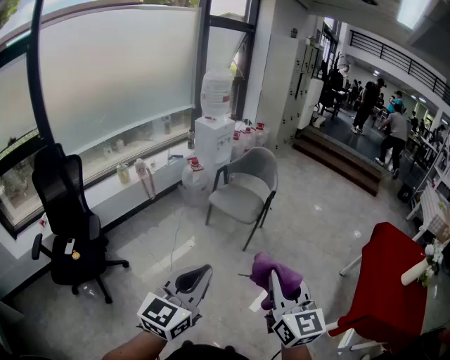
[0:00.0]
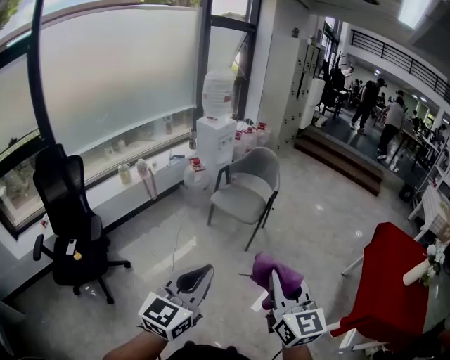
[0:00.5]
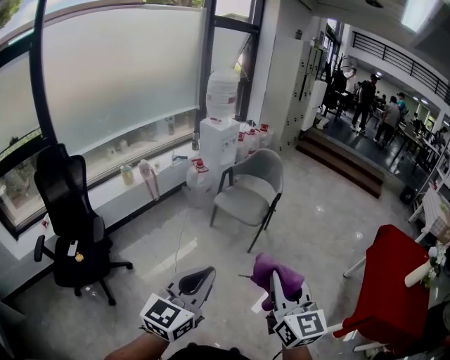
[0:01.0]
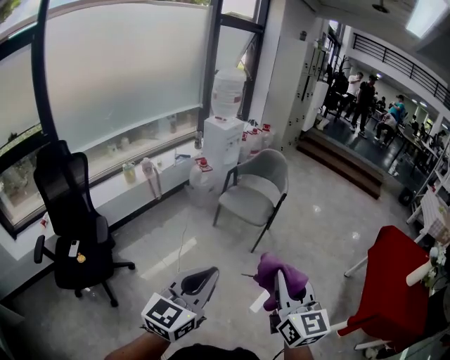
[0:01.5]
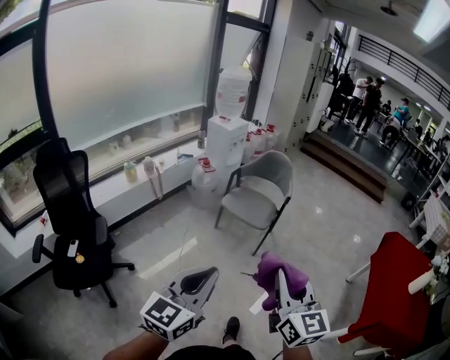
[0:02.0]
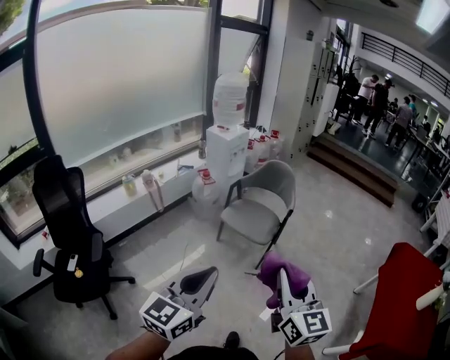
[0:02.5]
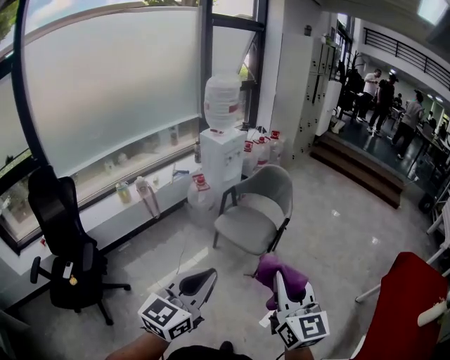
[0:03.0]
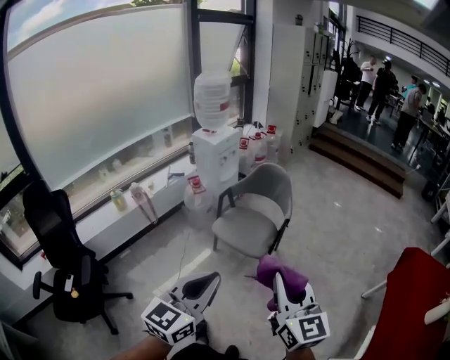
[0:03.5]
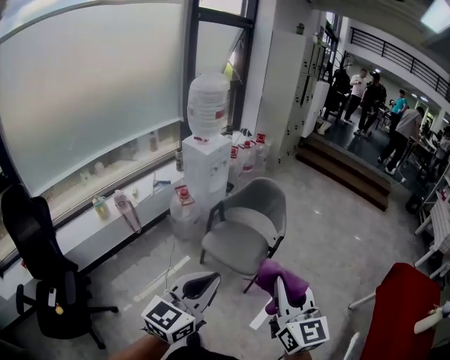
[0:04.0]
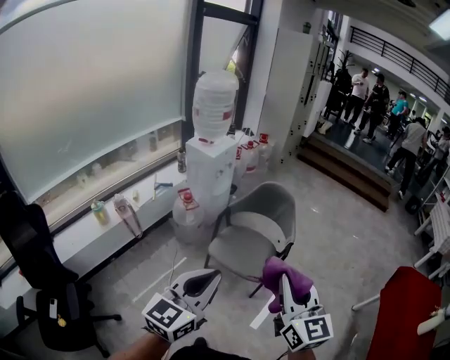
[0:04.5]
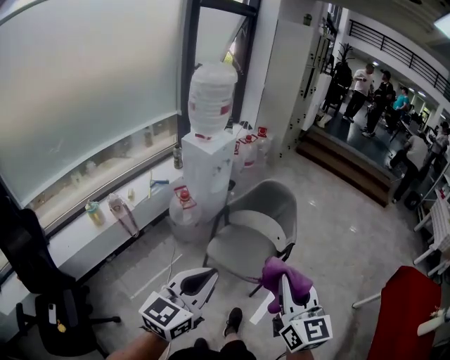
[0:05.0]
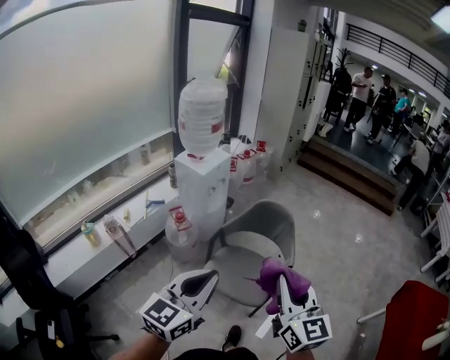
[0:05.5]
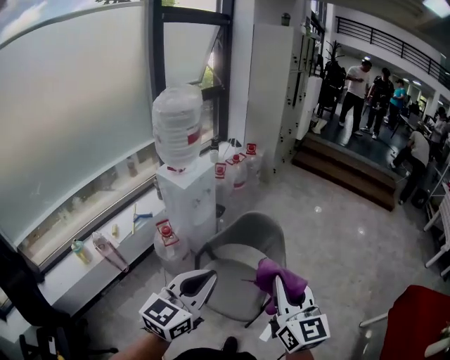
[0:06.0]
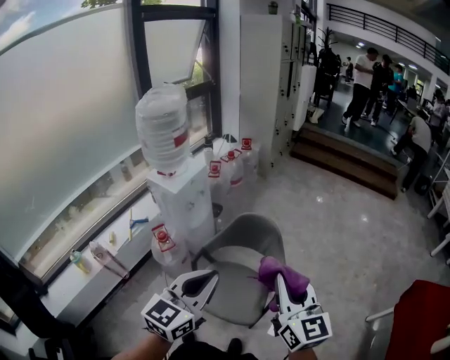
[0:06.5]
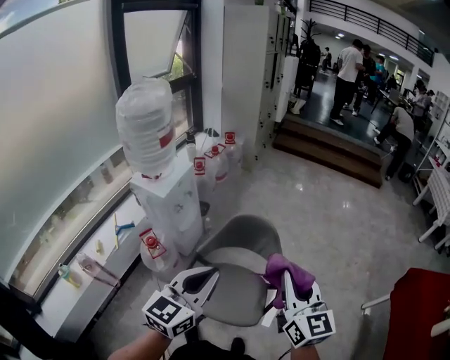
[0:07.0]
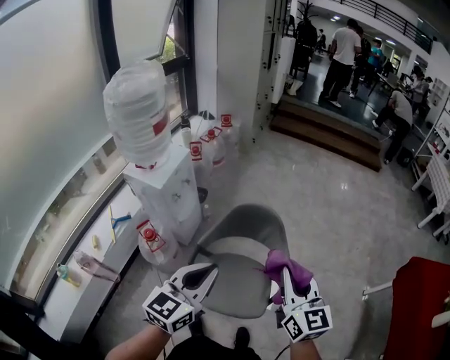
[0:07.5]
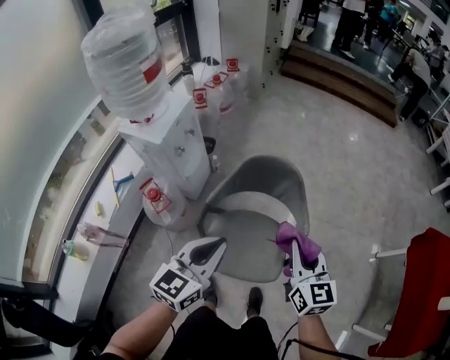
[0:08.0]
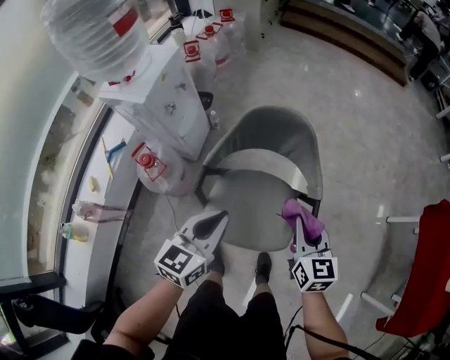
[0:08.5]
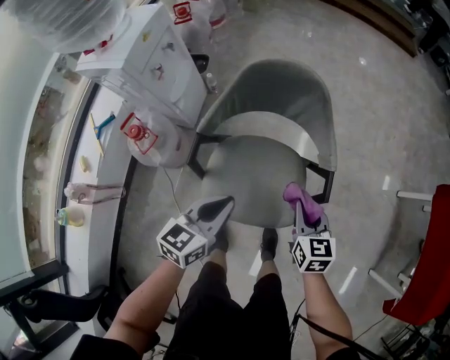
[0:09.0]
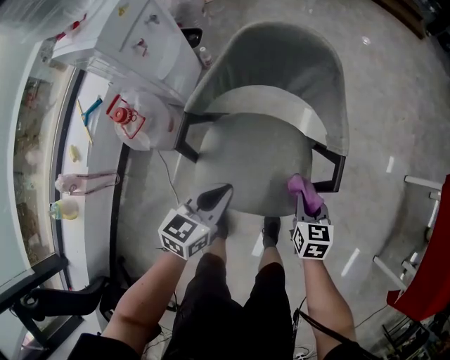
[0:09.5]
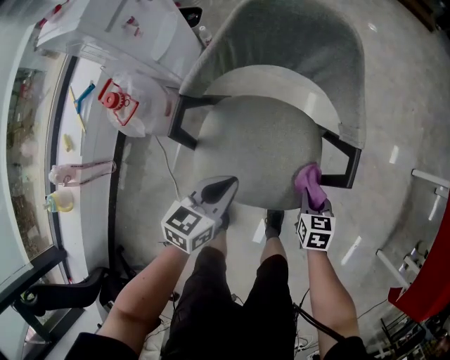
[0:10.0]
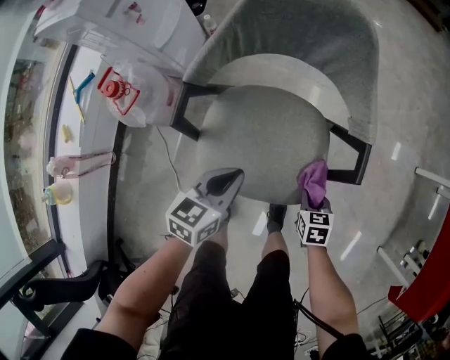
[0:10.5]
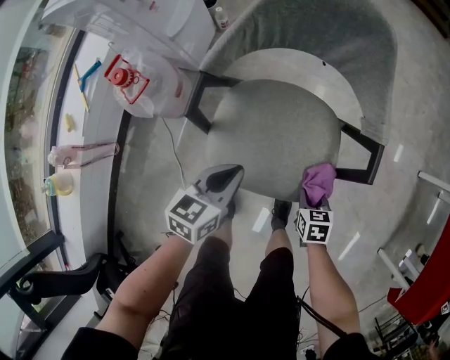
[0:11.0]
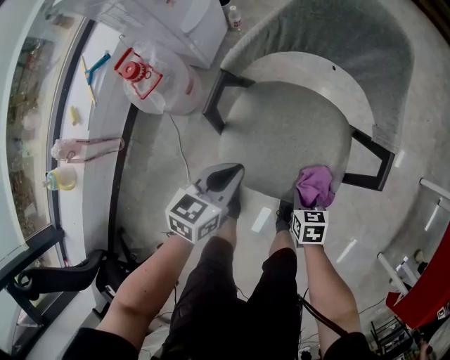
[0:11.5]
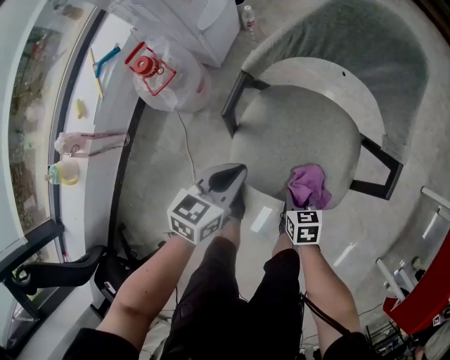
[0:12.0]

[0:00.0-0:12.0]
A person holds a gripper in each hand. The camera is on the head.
0:00.0 to 0:02.0: Both grippers move to the left, about 10 cm.
0:02.0 to 0:04.0: The two grippers go some 35 cm forward.
0:04.0 to 0:06.0: Both grippers move forward, about 35 cm.
0:06.0 to 0:08.0: The left gripper is displaced forward, downward and to the left by roughly 25 cm. Meanwhile the right gripper shifts roughly 25 cm downward and forward, and changes its angle by approximately 20 degrees.
0:08.0 to 0:10.0: The grippers both shift downward by roughly 40 cm. The right gripper angles its fingers downward, by about 40 degrees, while the left gripper turns by roughly 30 degrees.
0:10.0 to 0:12.0: The left gripper goes about 10 cm to the left; the right gripper shifts about 15 cm to the left.

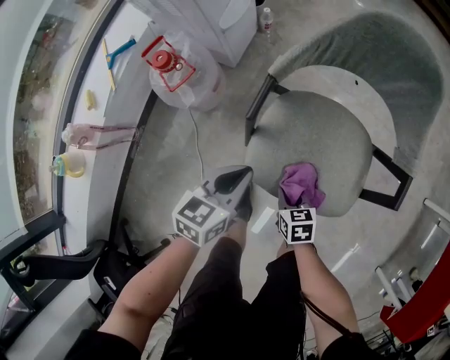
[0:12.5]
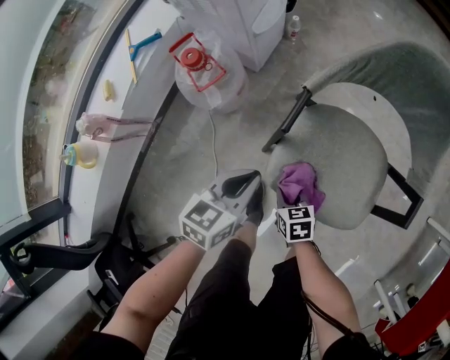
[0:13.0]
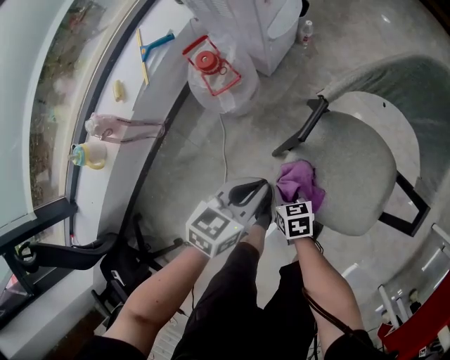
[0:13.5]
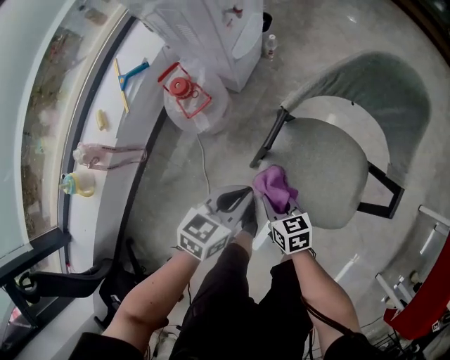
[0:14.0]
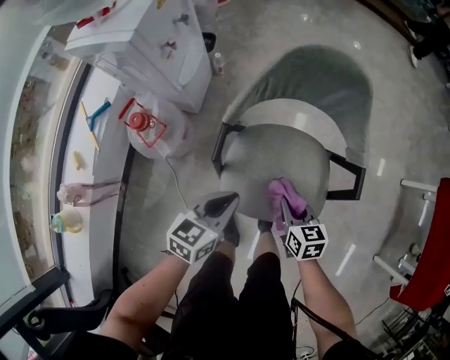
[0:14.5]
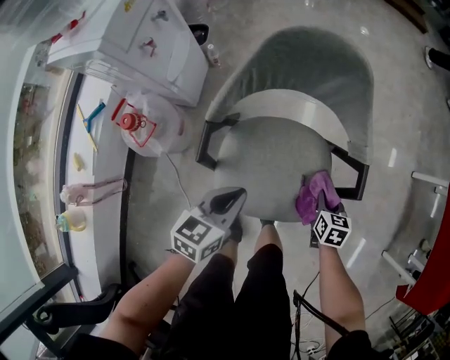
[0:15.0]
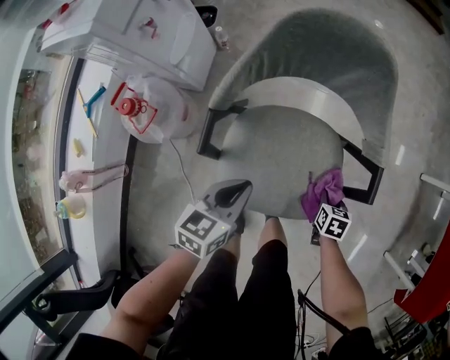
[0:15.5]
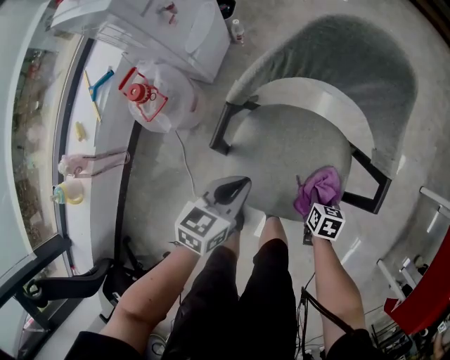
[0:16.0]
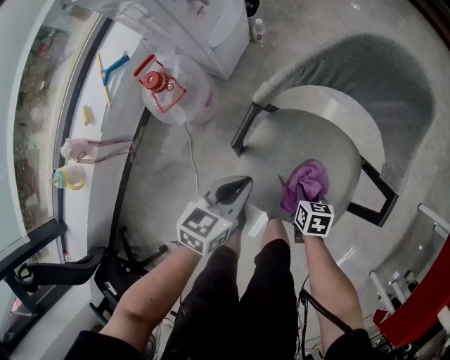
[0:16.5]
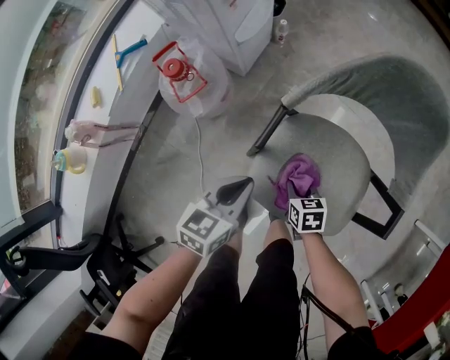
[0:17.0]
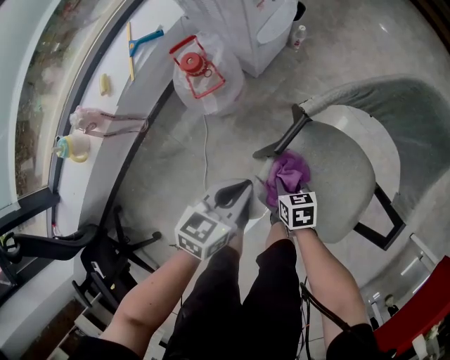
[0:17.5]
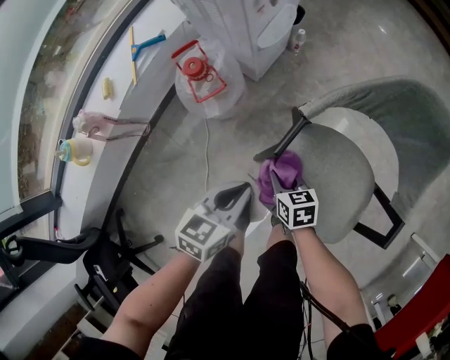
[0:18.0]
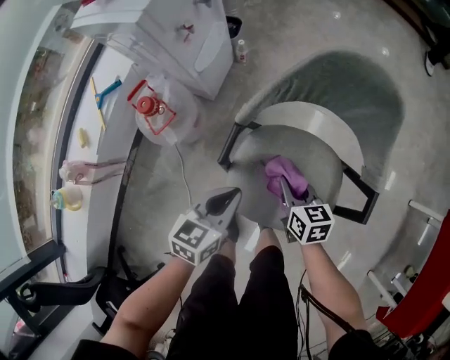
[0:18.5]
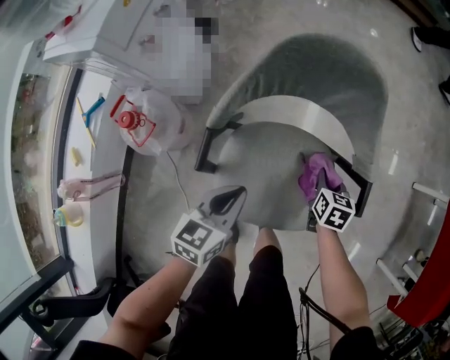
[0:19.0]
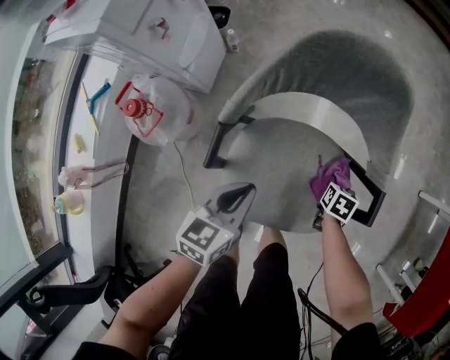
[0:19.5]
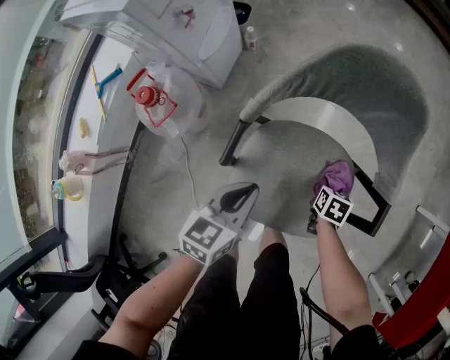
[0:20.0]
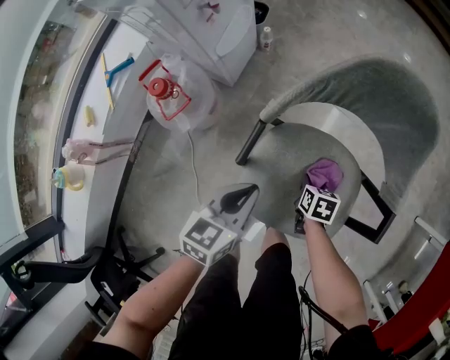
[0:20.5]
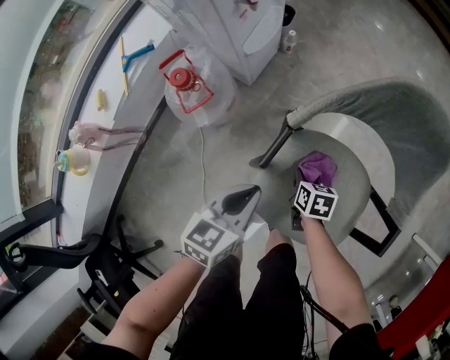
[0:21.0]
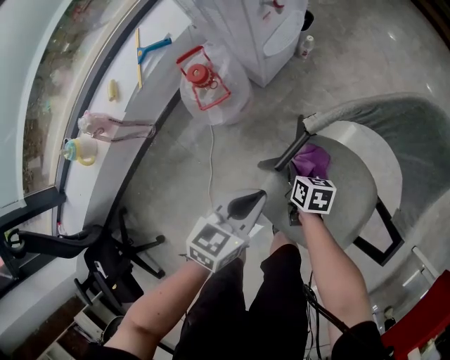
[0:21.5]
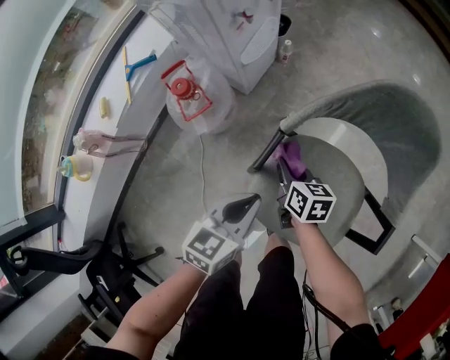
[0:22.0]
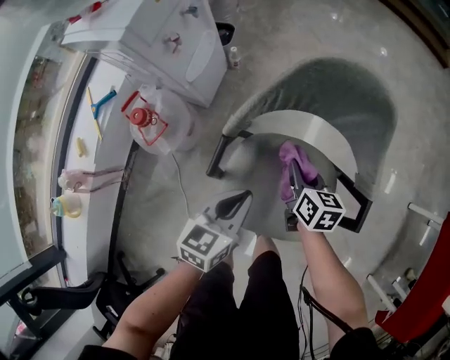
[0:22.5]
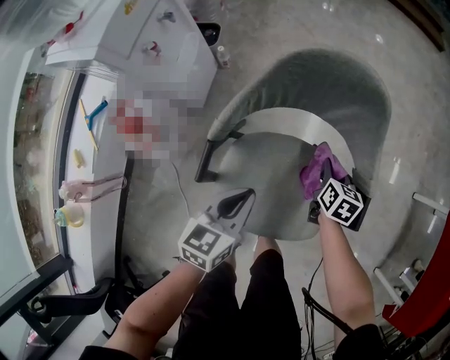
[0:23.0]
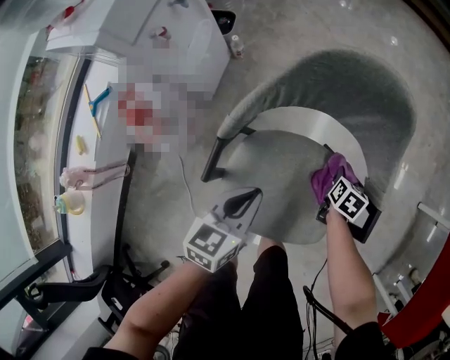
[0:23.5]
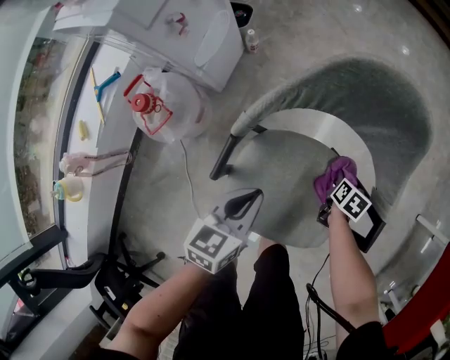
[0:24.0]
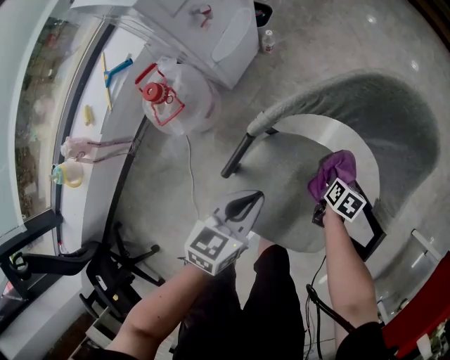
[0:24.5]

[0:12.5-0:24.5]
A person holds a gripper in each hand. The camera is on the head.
0:12.5 to 0:14.5: The left gripper is displaced upward by roughly 5 cm. The right gripper shifts some 15 cm upward, and rotates approximately 20 degrees.
0:14.5 to 0:16.5: The left gripper shifts approximately 5 cm downward, while the right gripper heads downward, covering roughly 15 cm.
0:16.5 to 0:18.5: The left gripper reaches about 10 cm to the left, then returns, while the right gripper shifts about 15 cm upward and forward, reaches about 20 cm to the left, then returns, and turns by approximately 20 degrees.
0:18.5 to 0:20.5: The right gripper shifts approximately 15 cm downward, and changes its angle by some 30 degrees.
0:20.5 to 0:22.5: The left gripper goes approximately 5 cm to the right. The right gripper travels upward and forward by about 15 cm, reaches approximately 15 cm to the left, then returns, and turns by some 30 degrees.
0:22.5 to 0:24.5: The right gripper shifts some 20 cm downward and to the right, and rotates approximately 30 degrees.

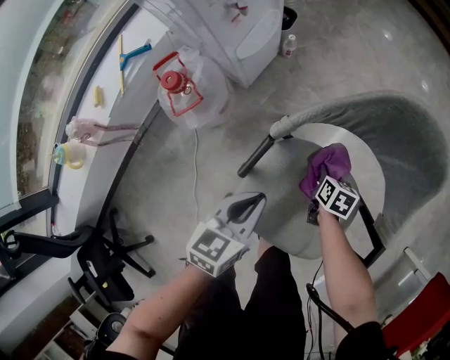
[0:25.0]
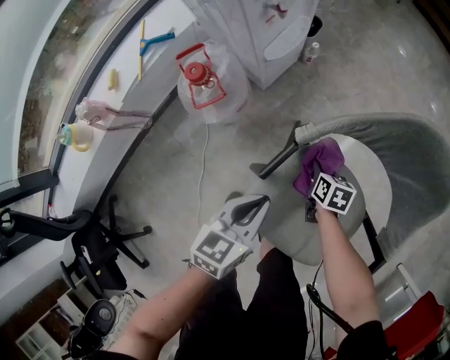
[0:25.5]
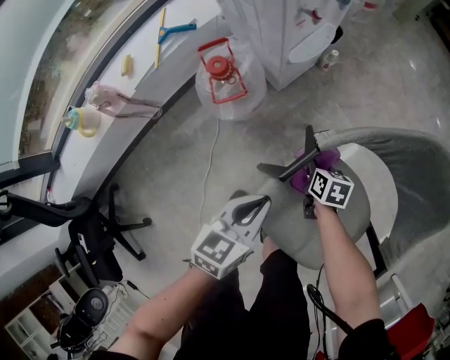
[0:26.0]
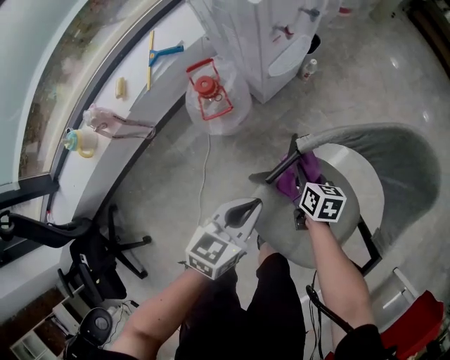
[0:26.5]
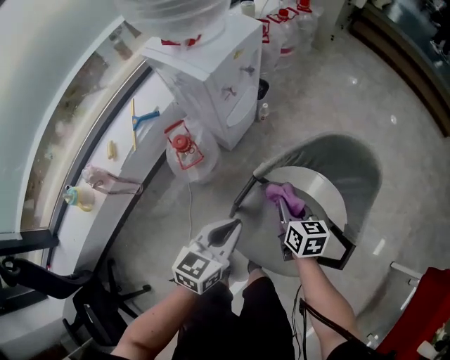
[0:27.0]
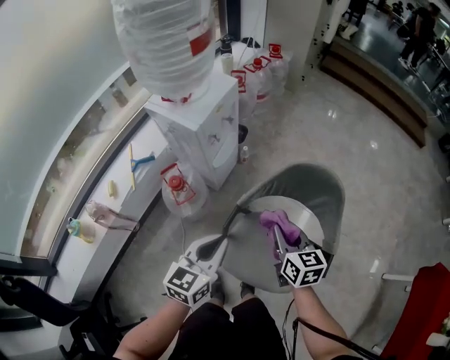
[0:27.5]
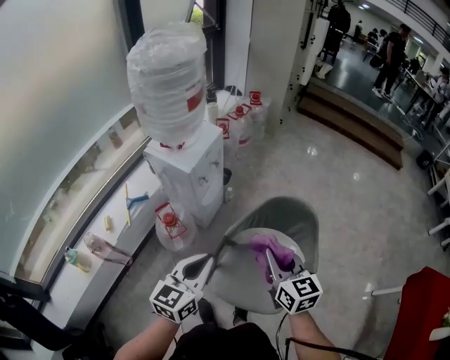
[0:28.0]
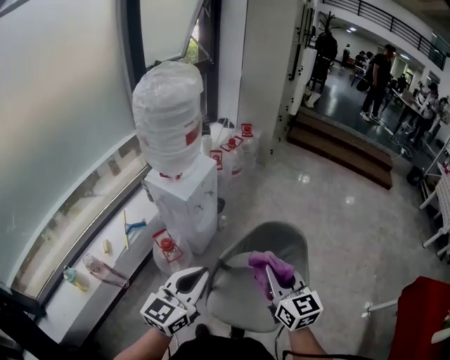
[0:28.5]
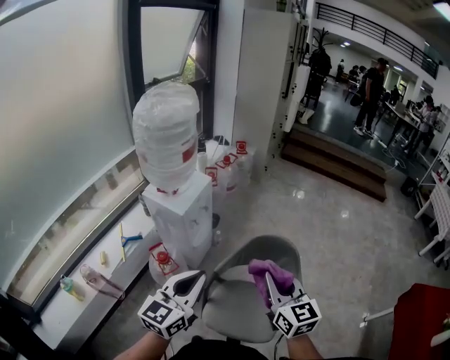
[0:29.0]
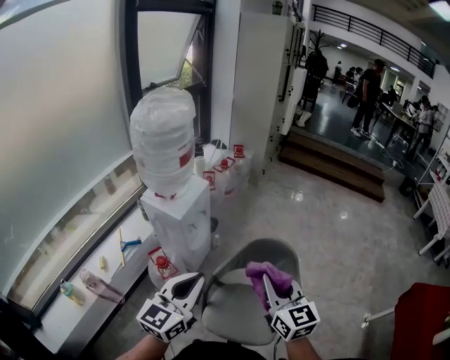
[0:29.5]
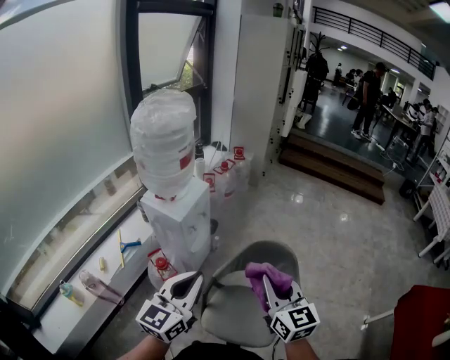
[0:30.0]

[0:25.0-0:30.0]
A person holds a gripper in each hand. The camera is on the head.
0:25.0 to 0:27.5: The left gripper shifts roughly 25 cm upward, and changes its angle by about 20 degrees; the right gripper shifts about 40 cm upward, and tips its fingers upward by approximately 30 degrees.
0:27.5 to 0:30.0: Both grippers move upward, some 25 cm. The left gripper changes its angle by some 20 degrees. Meanwhile the right gripper rotates some 30 degrees.
